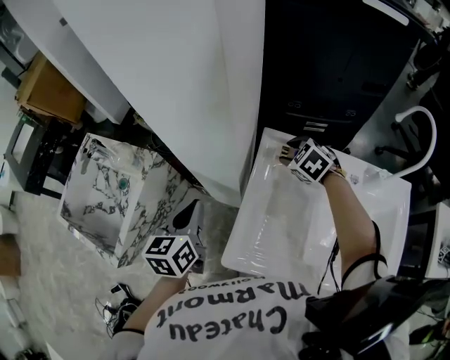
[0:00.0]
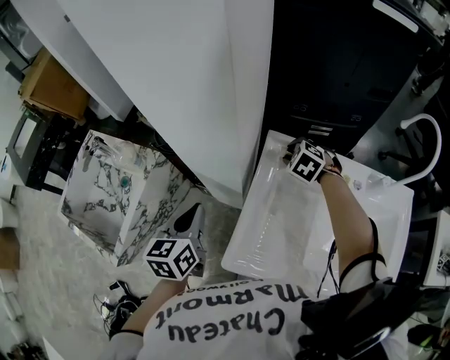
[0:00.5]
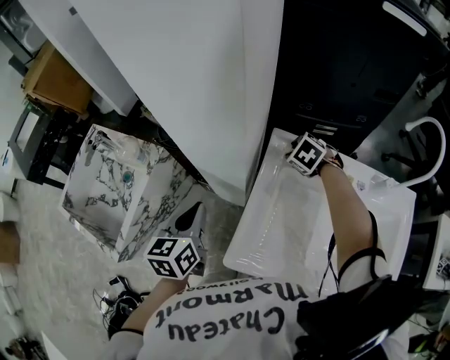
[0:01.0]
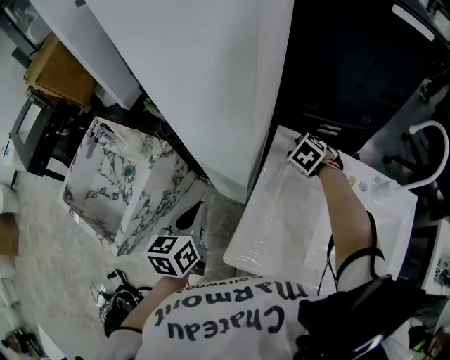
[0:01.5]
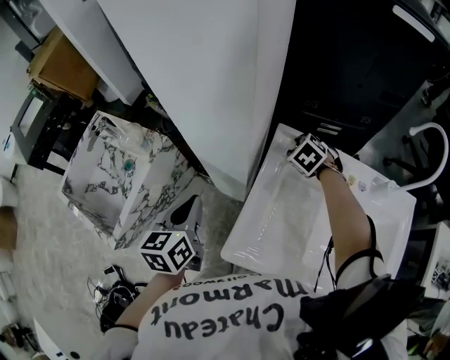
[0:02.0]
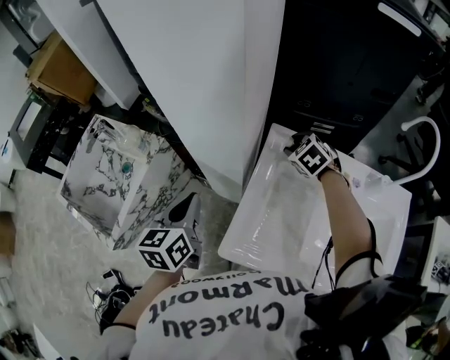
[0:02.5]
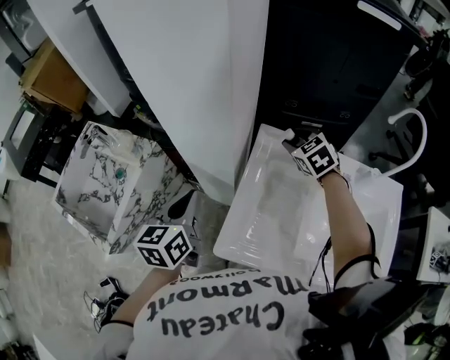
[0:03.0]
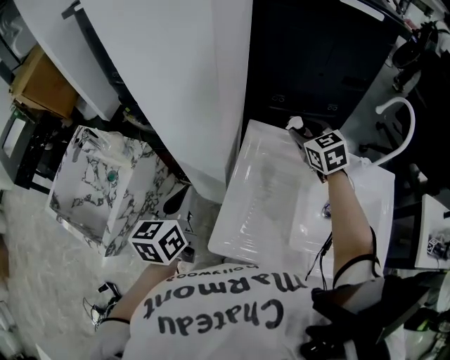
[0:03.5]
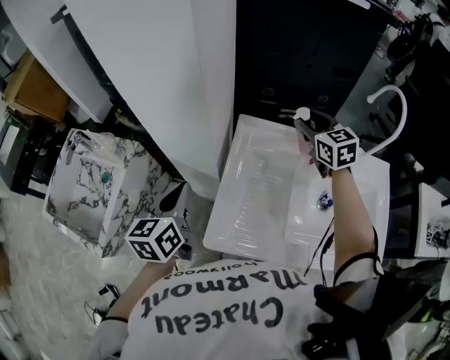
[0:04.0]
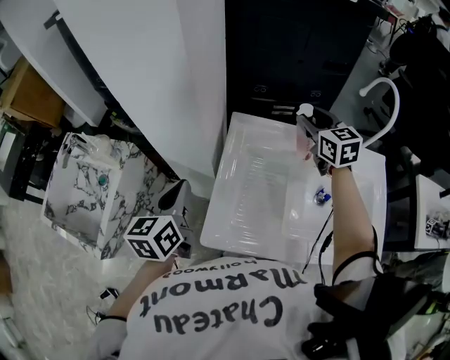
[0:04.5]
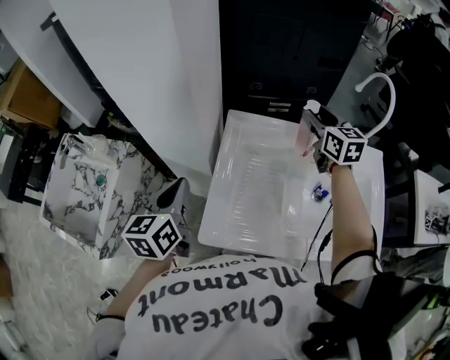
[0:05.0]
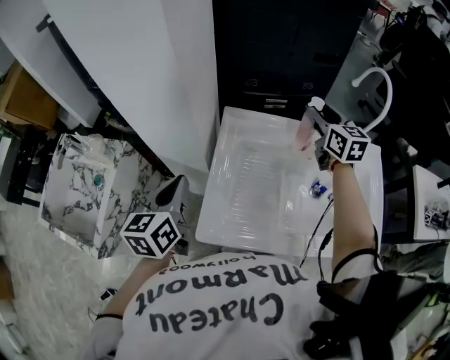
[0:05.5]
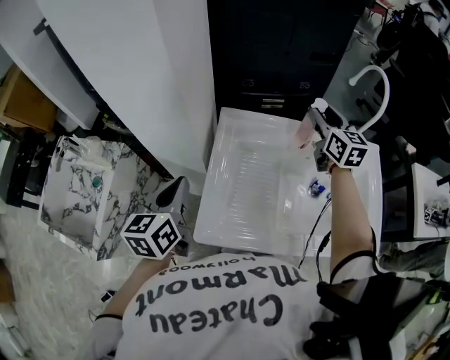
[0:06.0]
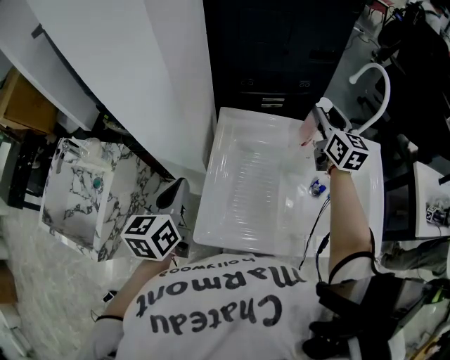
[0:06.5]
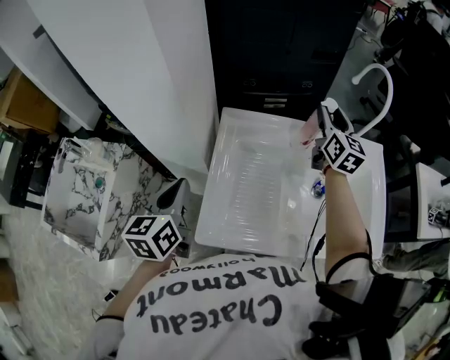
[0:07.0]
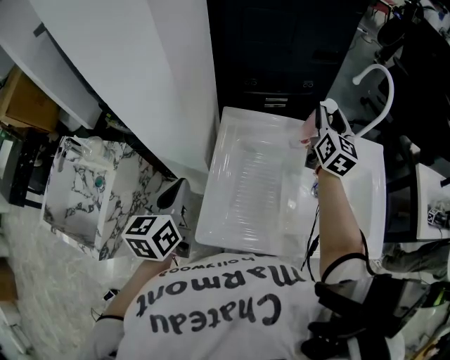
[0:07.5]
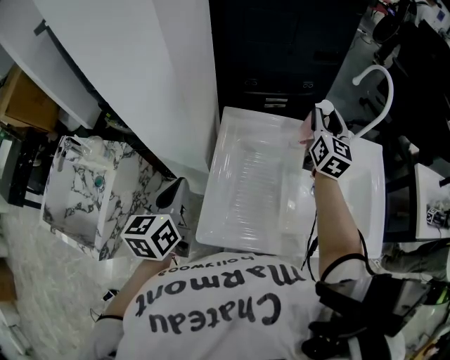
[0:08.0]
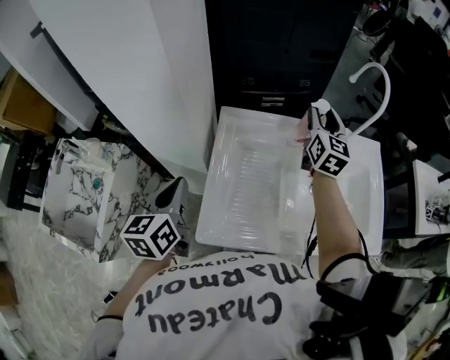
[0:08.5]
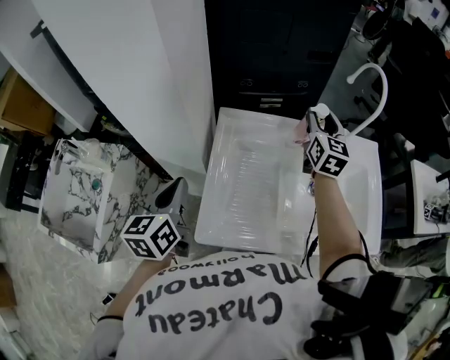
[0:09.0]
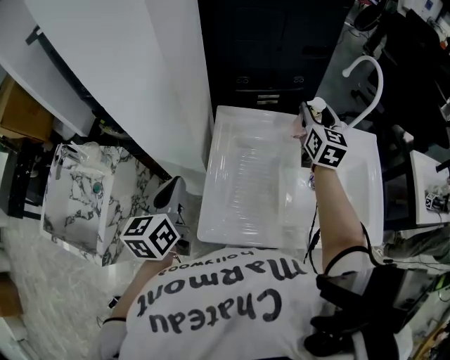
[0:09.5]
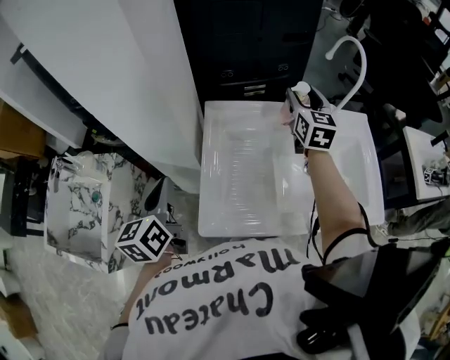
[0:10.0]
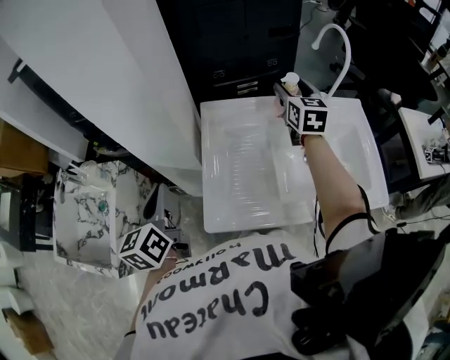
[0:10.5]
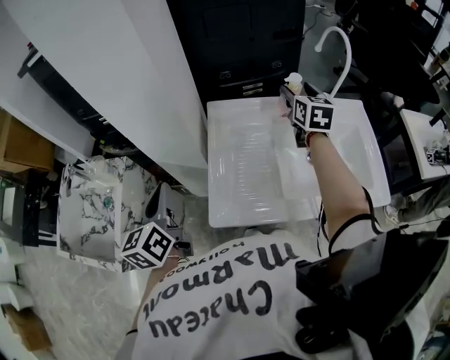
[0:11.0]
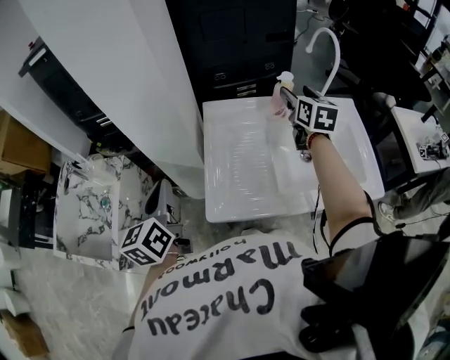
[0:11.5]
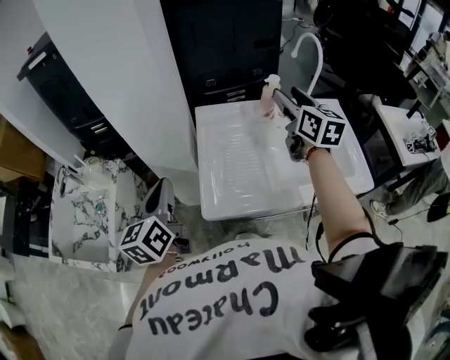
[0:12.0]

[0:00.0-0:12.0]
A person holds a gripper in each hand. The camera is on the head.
0:00.0 to 0:02.0: The grippers move only a little.
0:02.0 to 0:04.0: The right gripper travels upward and to the right by about 20 cm, and tilts its fingers about 40 degrees upward; the left gripper changes place by about 5 cm.
0:04.0 to 0:06.0: The right gripper travels to the right by about 10 cm, and changes its angle by approximately 20 degrees.
0:06.0 to 0:08.0: The right gripper turns by some 20 degrees.
0:08.0 to 0:10.0: The grippers make only small movements.
0:10.0 to 0:12.0: The left gripper shifts roughly 10 cm backward; the right gripper shifts about 15 cm backward and upward.

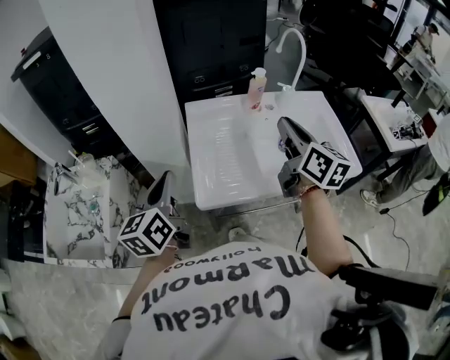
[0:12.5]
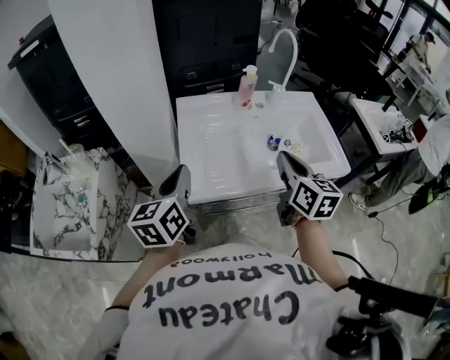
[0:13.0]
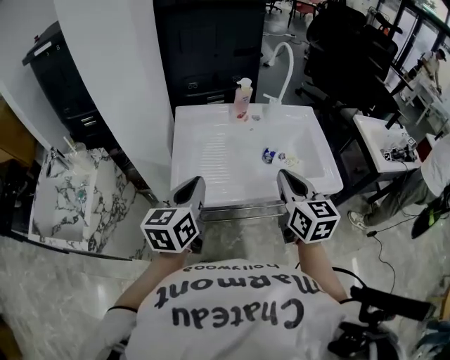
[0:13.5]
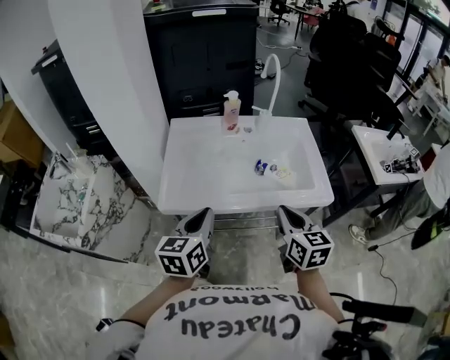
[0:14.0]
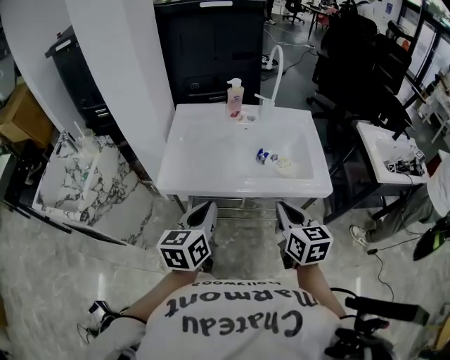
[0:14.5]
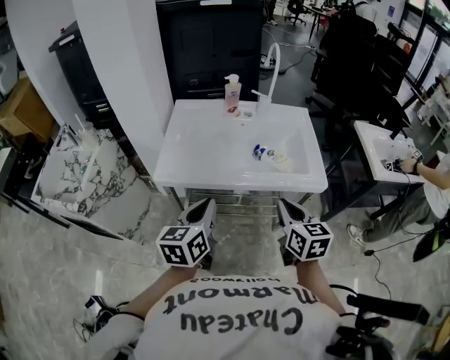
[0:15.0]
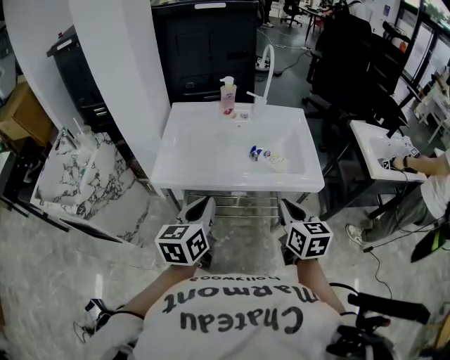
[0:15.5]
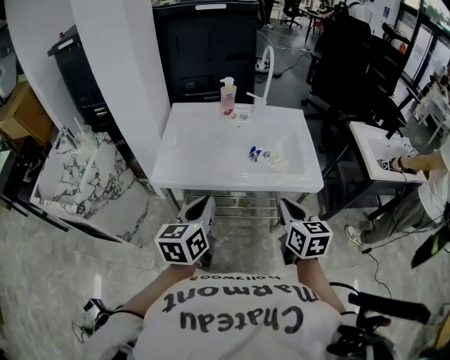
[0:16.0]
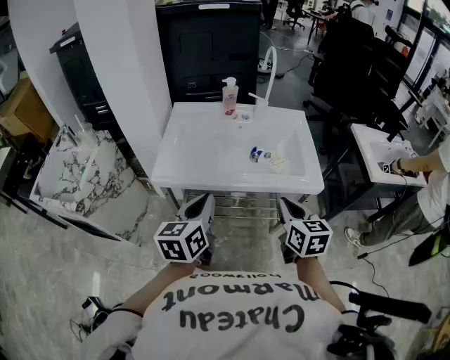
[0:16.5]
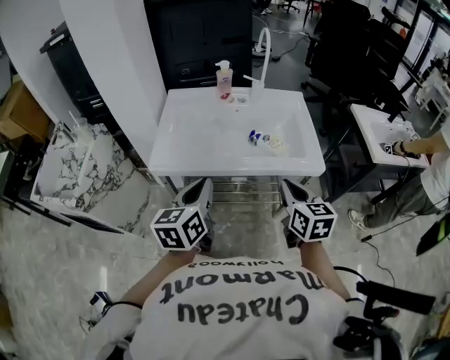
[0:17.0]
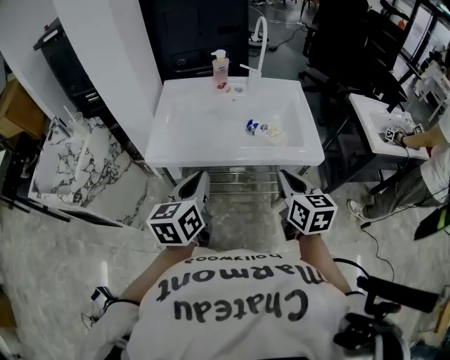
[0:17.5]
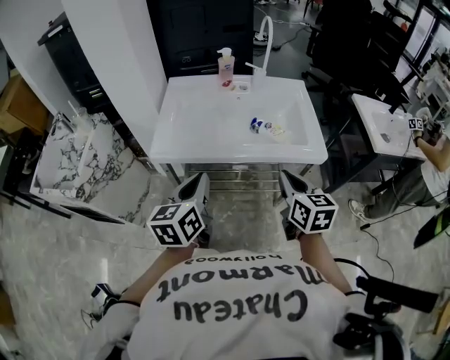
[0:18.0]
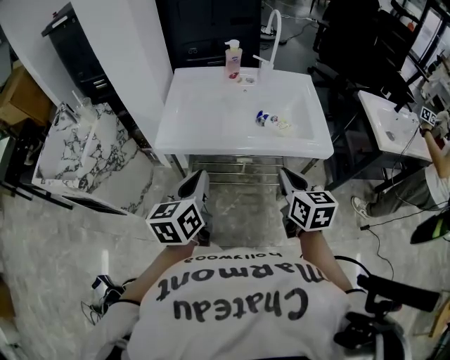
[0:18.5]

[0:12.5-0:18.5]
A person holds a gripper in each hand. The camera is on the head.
0:12.5 to 0:14.5: The right gripper heads backward, to the right and downward, covering about 30 cm, and turns by some 30 degrees; the left gripper heads to the right and backward, covering roughly 30 cm.
0:14.5 to 0:16.5: There are only small adjustments of the grippers.
0:16.5 to 0:18.5: The left gripper moves approximately 5 cm.

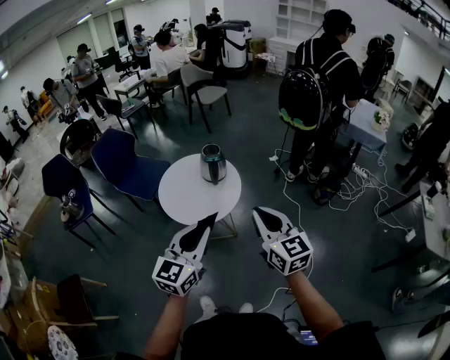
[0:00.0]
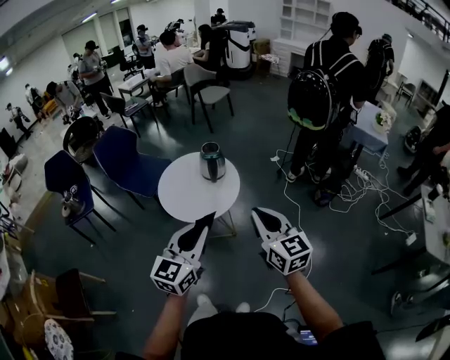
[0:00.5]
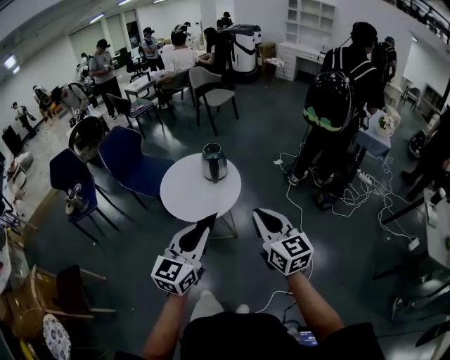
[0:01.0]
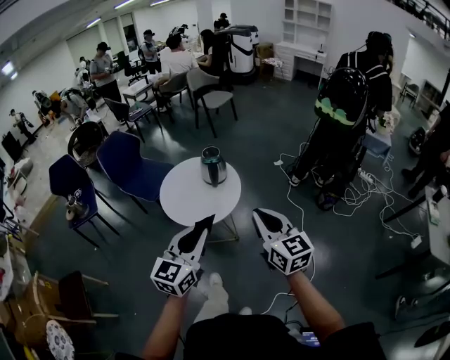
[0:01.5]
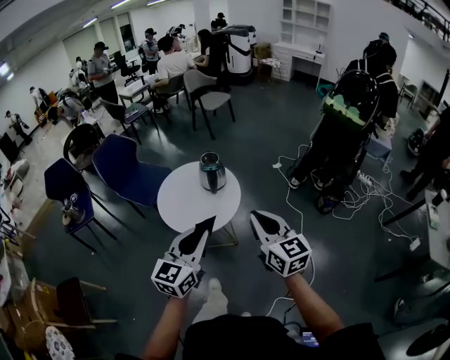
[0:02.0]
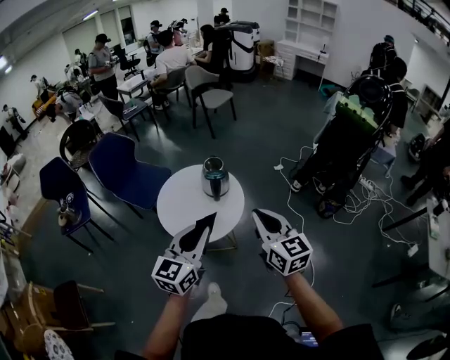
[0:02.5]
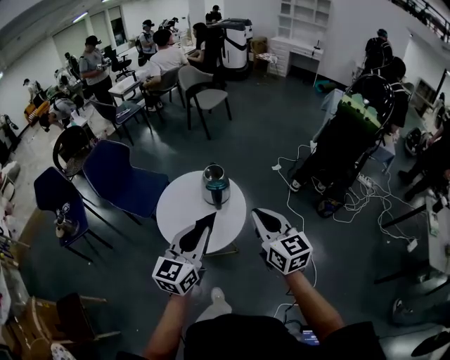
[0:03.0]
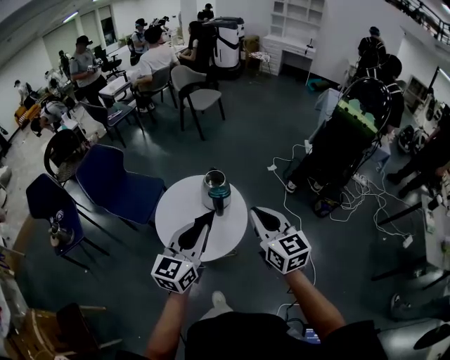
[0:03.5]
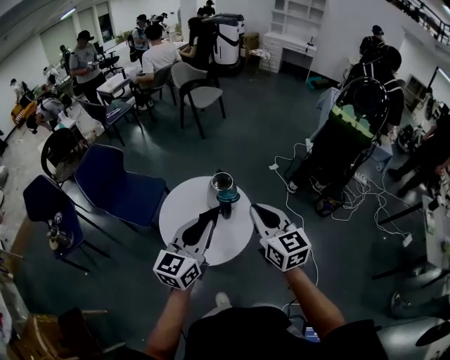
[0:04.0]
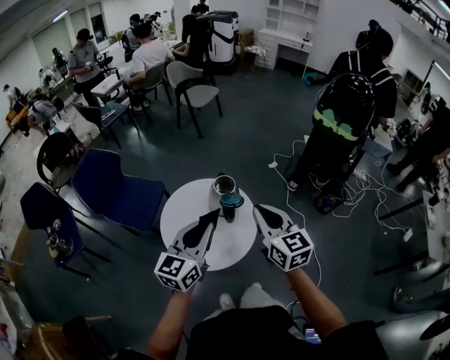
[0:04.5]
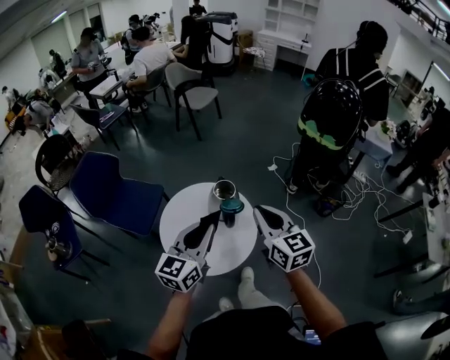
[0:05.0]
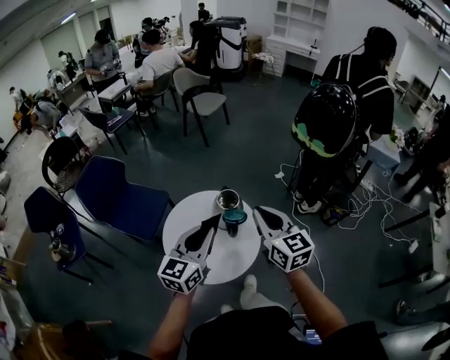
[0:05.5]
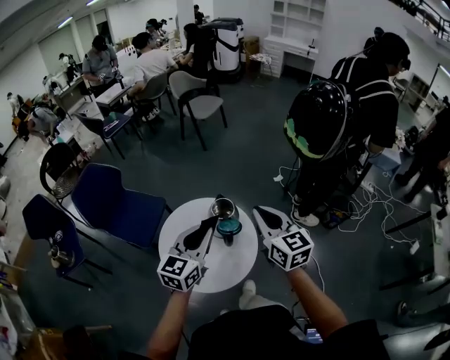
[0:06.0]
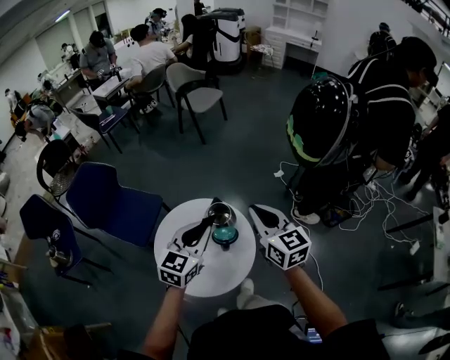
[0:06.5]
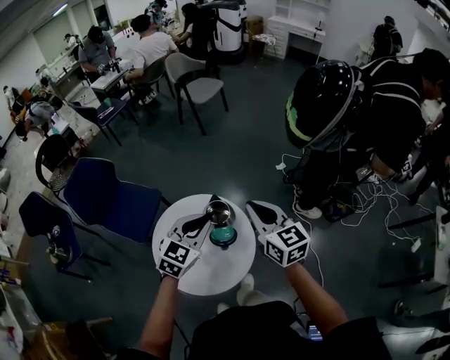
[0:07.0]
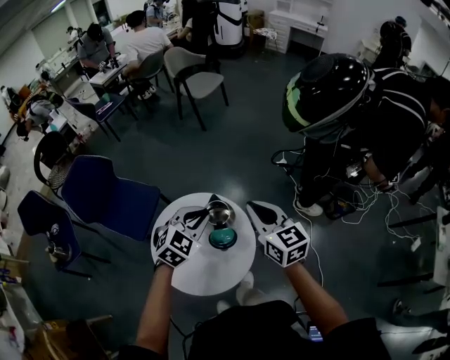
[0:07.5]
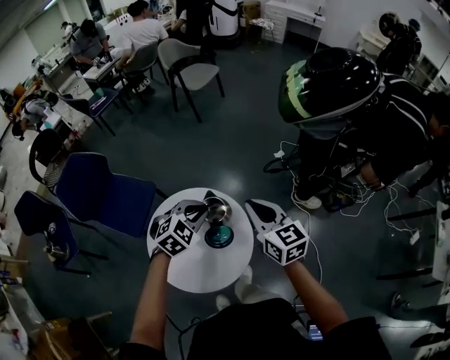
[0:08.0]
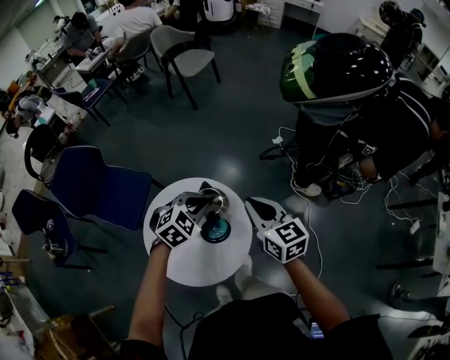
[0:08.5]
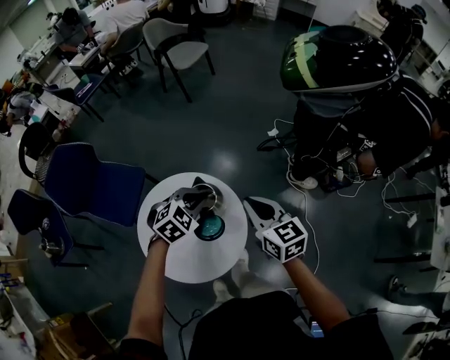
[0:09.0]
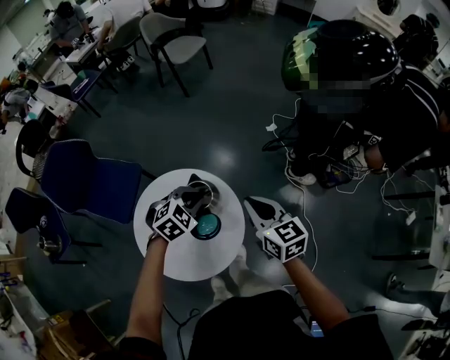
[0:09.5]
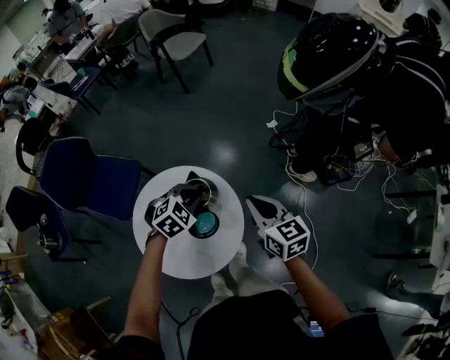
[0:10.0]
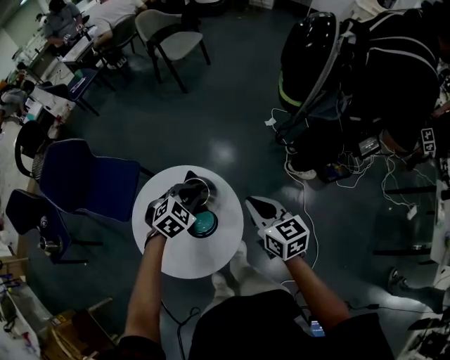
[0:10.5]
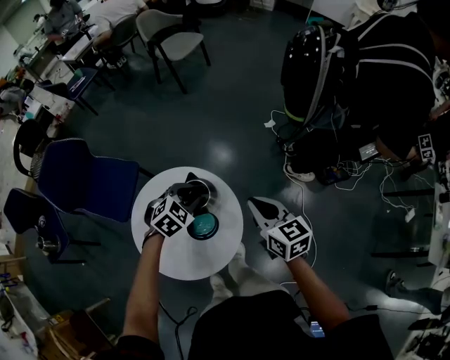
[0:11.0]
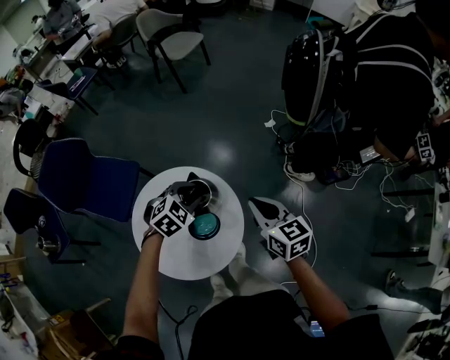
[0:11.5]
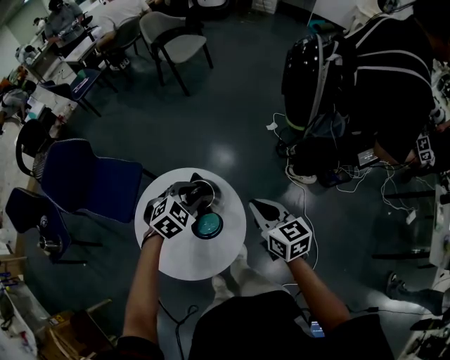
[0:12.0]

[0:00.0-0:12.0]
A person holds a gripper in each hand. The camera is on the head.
0:00.0 to 0:02.0: The grippers make only small movements.
0:02.0 to 0:04.0: The grippers both shift forward and to the left by approximately 30 cm.
0:04.0 to 0:06.0: Both grippers move forward, about 15 cm.
0:06.0 to 0:08.0: Both grippers move forward and downward, approximately 20 cm. The left gripper points its fingers roughly 40 degrees further downward.
0:08.0 to 0:10.0: The left gripper travels downward by approximately 10 cm. The right gripper is displaced downward and to the right by about 10 cm.
0:10.0 to 0:12.0: There are only small adjustments of the grippers.
